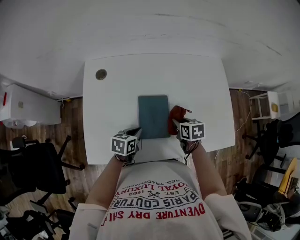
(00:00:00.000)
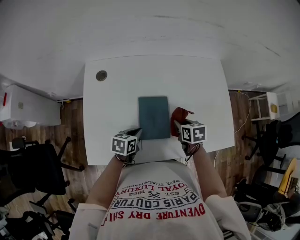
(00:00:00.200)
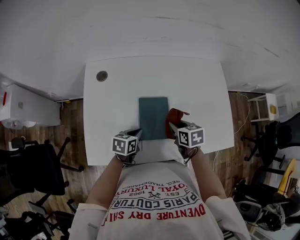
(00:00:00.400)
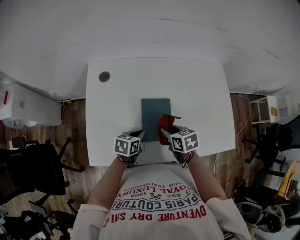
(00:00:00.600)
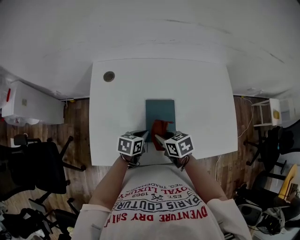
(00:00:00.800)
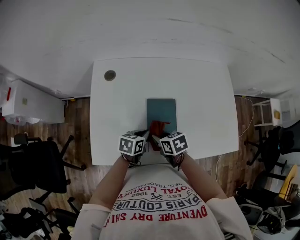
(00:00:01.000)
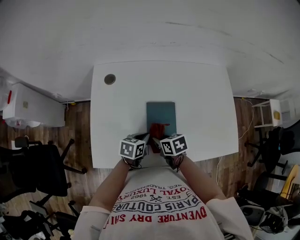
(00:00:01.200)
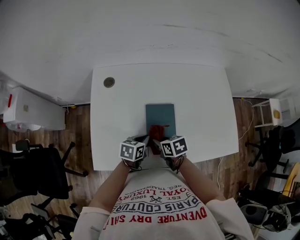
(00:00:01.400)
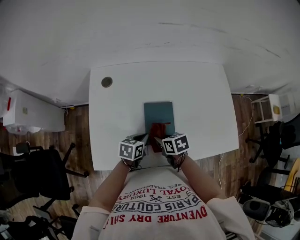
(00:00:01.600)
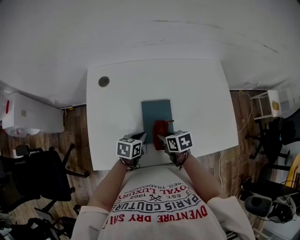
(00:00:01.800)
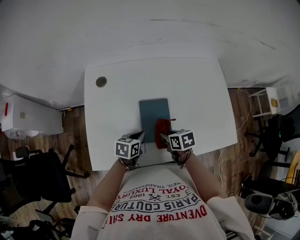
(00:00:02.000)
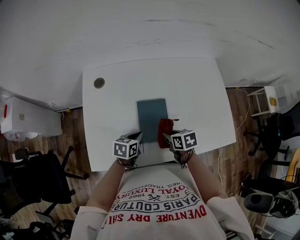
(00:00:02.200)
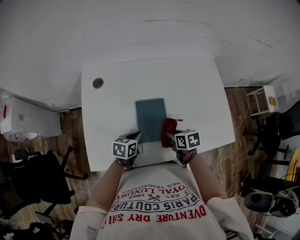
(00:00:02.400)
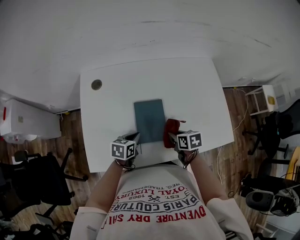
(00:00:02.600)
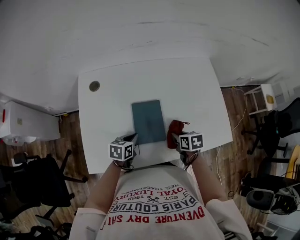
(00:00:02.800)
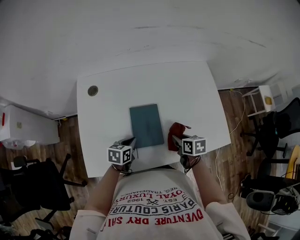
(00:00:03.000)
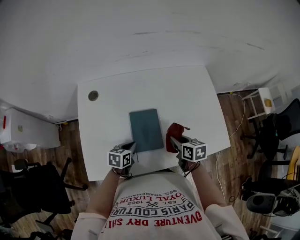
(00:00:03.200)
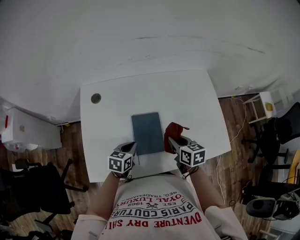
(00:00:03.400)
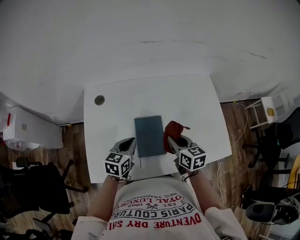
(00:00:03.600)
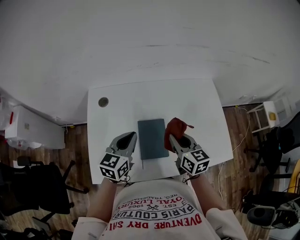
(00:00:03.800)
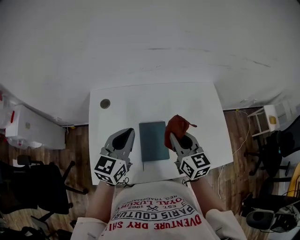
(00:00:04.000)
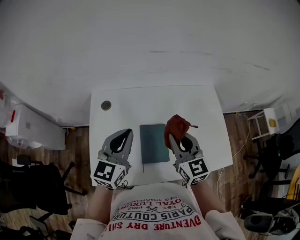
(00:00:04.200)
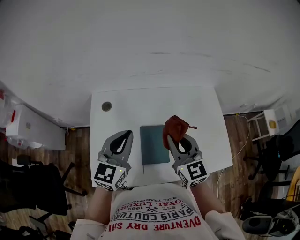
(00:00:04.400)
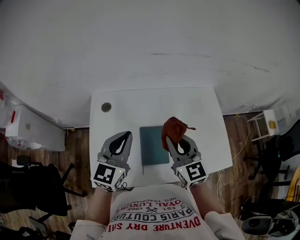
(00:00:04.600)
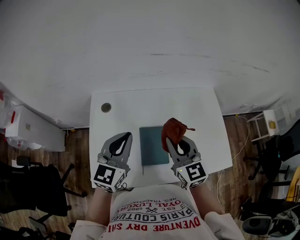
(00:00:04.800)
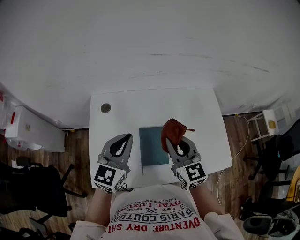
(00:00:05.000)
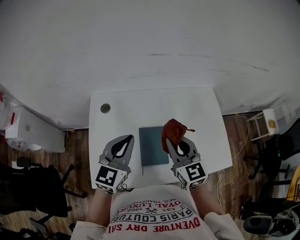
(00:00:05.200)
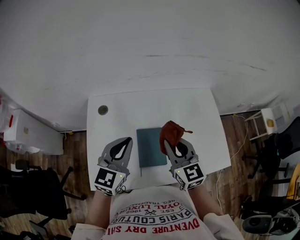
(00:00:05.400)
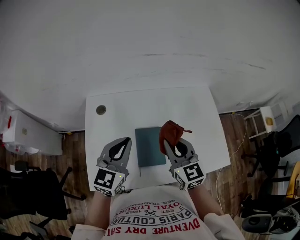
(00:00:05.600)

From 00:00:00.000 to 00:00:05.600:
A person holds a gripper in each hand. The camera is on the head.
From 00:00:00.000 to 00:00:01.400: The right gripper heads to the left and backward, covering roughly 15 cm.
From 00:00:01.400 to 00:00:02.800: The right gripper goes approximately 15 cm to the right.
From 00:00:02.800 to 00:00:04.200: Both grippers travel together upward, roughly 25 cm. The left gripper angles its fingers upward, by roughly 40 degrees, while the right gripper angles its fingers upward, by roughly 50 degrees.
From 00:00:04.200 to 00:00:05.600: There are only small adjustments of the grippers.

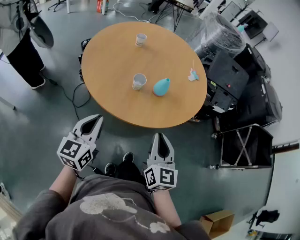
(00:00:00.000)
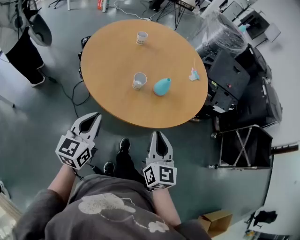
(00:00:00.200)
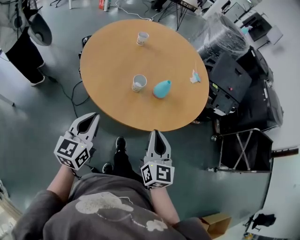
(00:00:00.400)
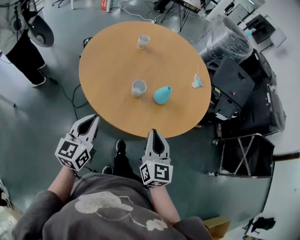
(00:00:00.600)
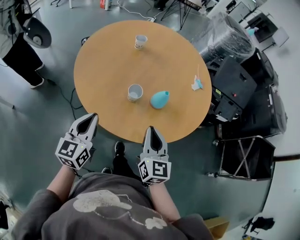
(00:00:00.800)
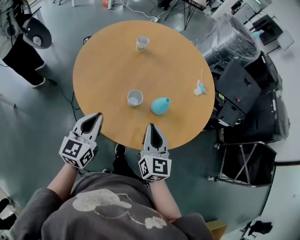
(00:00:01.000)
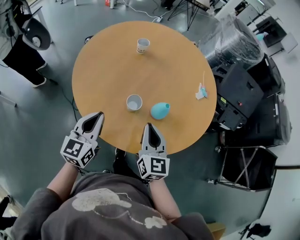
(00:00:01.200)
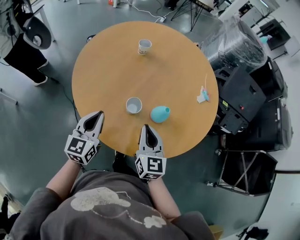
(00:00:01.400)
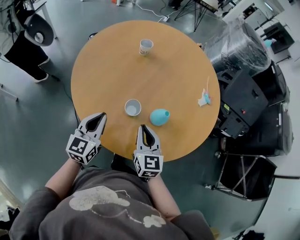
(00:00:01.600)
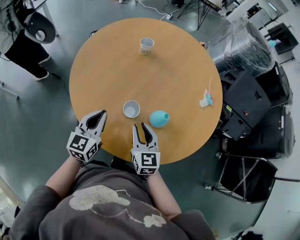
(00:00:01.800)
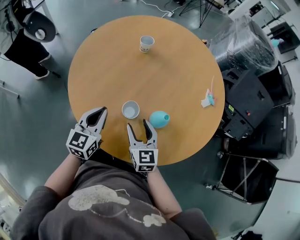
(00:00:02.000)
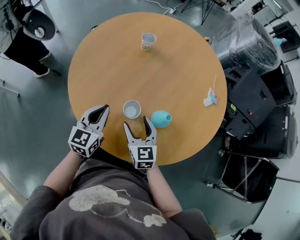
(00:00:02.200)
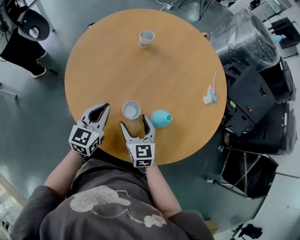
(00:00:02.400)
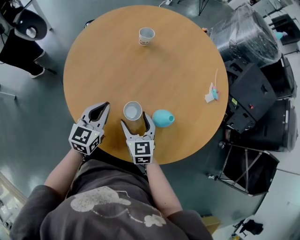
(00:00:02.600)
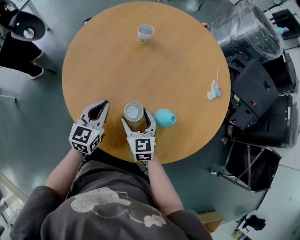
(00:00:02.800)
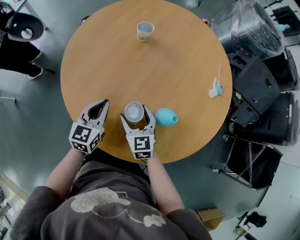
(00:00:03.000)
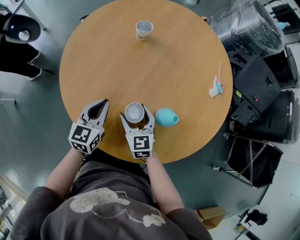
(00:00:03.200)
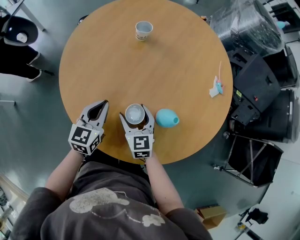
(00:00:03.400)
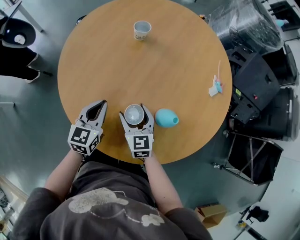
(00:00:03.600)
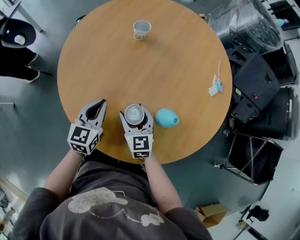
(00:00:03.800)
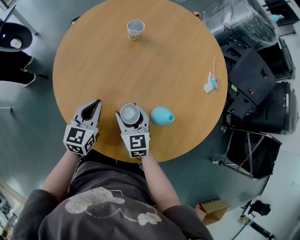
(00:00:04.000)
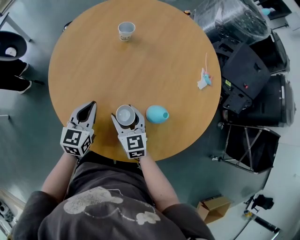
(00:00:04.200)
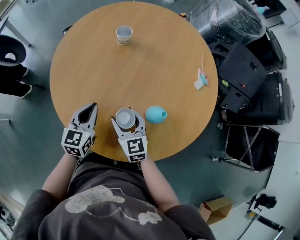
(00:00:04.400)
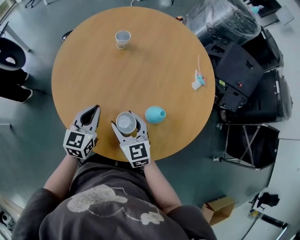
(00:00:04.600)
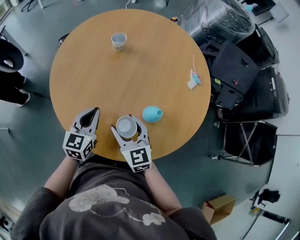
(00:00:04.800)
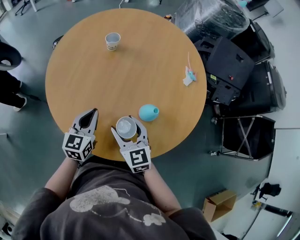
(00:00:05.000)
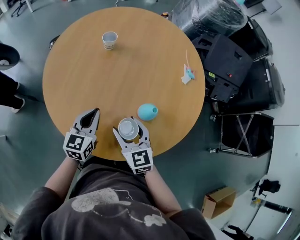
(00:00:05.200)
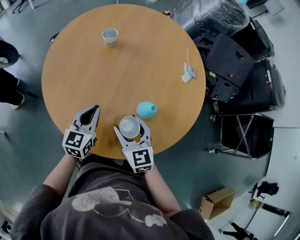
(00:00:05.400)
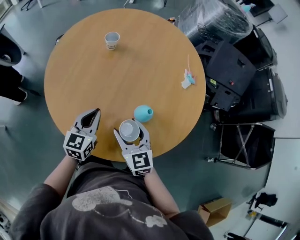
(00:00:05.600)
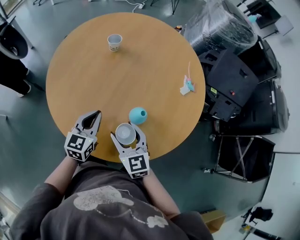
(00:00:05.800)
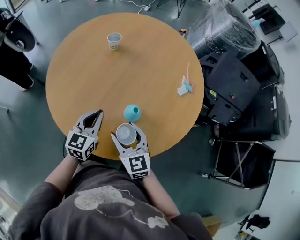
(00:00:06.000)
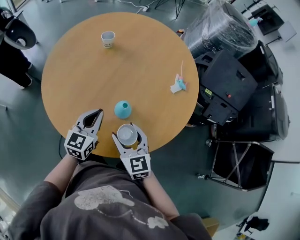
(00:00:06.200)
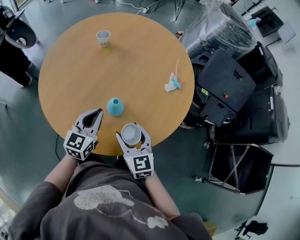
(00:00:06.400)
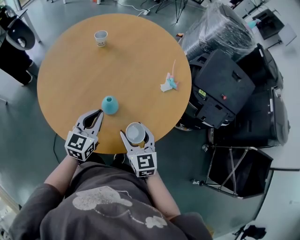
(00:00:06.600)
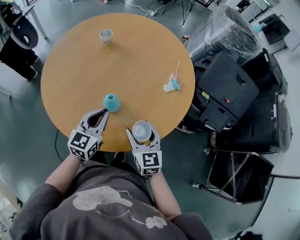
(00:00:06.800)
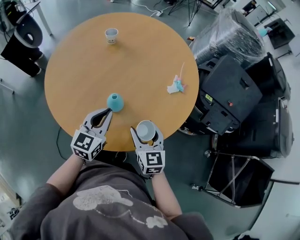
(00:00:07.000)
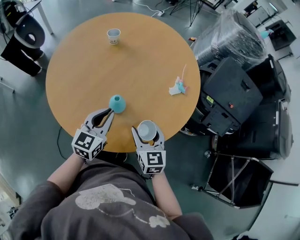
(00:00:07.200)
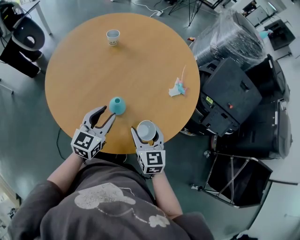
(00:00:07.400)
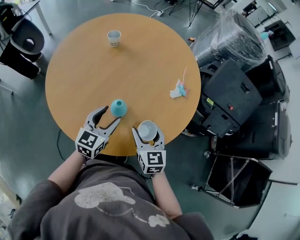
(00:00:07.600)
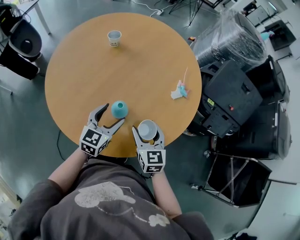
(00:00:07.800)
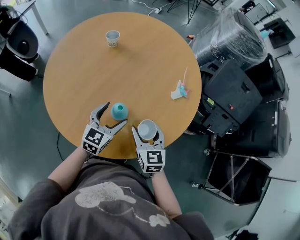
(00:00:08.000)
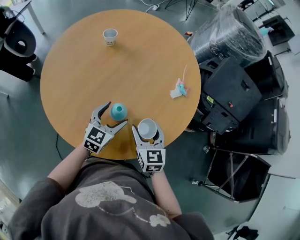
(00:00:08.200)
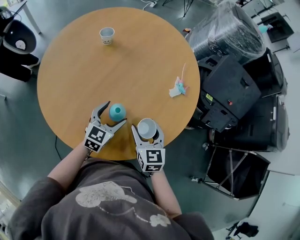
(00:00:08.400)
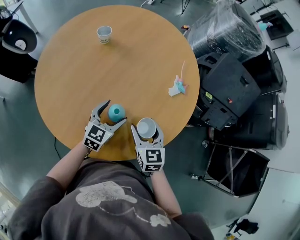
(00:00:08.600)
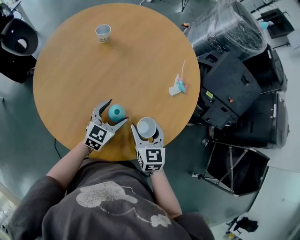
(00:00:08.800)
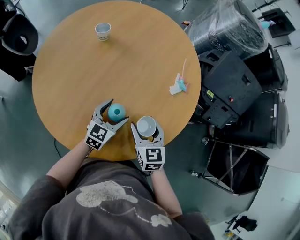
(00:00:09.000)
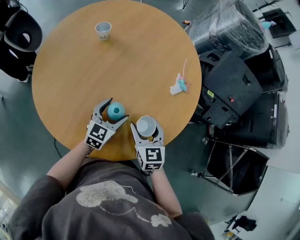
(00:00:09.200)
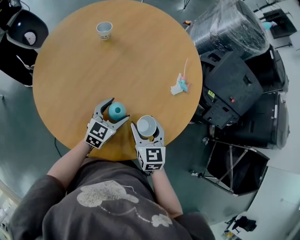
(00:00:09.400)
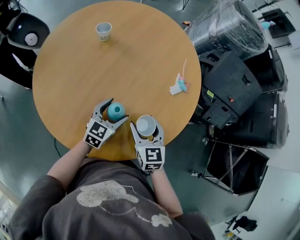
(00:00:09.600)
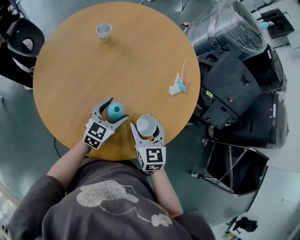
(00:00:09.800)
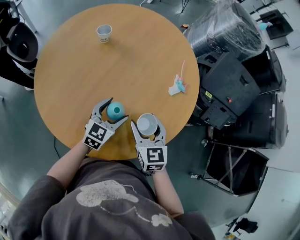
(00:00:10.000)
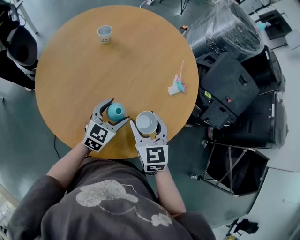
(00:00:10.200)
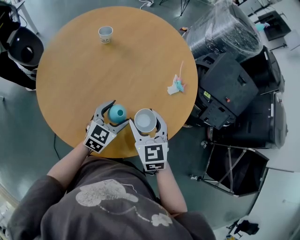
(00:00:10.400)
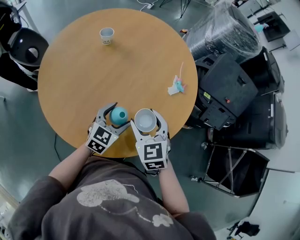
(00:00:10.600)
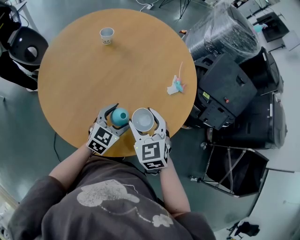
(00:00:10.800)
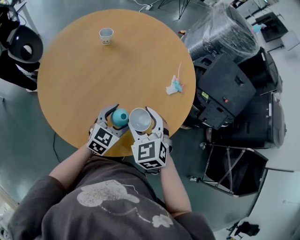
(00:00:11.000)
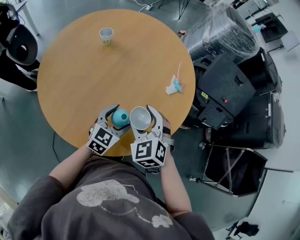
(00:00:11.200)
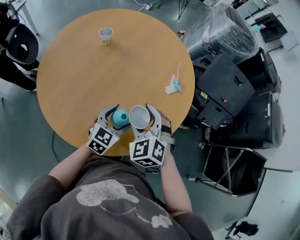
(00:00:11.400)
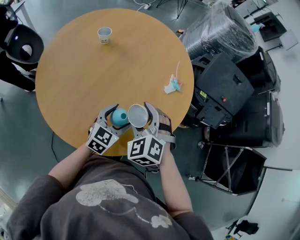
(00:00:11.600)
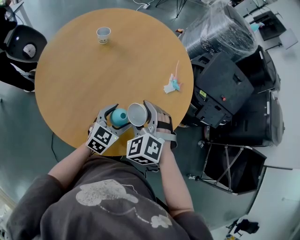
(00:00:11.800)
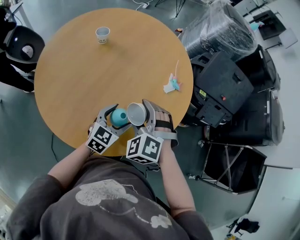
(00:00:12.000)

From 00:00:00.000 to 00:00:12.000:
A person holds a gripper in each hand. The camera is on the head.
From 00:00:00.000 to 00:00:01.600: The left gripper heads forward, covering some 20 cm. The right gripper shifts about 25 cm forward and downward, and changes its angle by roughly 20 degrees.
From 00:00:01.600 to 00:00:03.000: The left gripper is displaced forward and downward by about 10 cm. The right gripper heads forward, downward and to the left, covering roughly 15 cm, and opens.
From 00:00:03.000 to 00:00:04.400: There are only small adjustments of the grippers.
From 00:00:04.400 to 00:00:06.000: The right gripper travels to the right, backward and upward by about 15 cm; the left gripper travels to the right and backward by some 15 cm.
From 00:00:06.000 to 00:00:07.600: The two grippers go roughly 15 cm to the right. The left gripper opens its fingers.
From 00:00:07.600 to 00:00:09.000: The left gripper heads downward and forward, covering roughly 10 cm. Meanwhile the right gripper changes place by roughly 5 cm.
From 00:00:09.000 to 00:00:10.400: The left gripper ends up roughly 5 cm from where it was; the right gripper is displaced upward by roughly 10 cm.
From 00:00:10.400 to 00:00:12.000: The right gripper twists some 50 degrees counterclockwise, seen from behind.

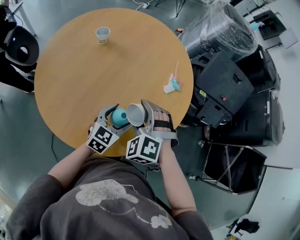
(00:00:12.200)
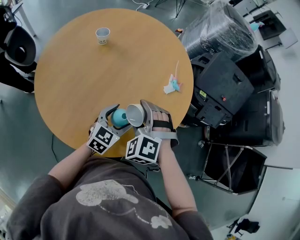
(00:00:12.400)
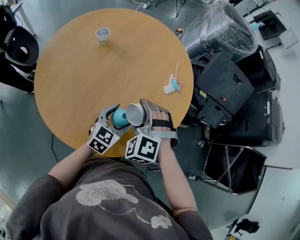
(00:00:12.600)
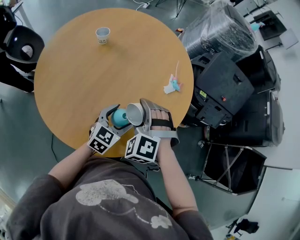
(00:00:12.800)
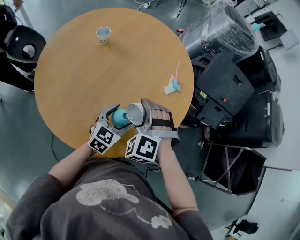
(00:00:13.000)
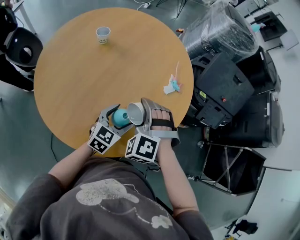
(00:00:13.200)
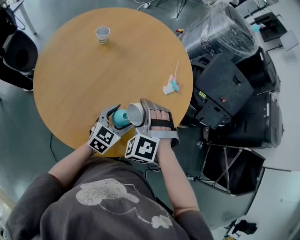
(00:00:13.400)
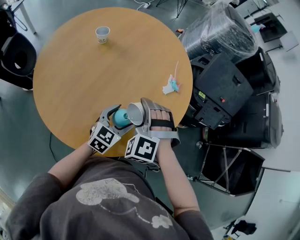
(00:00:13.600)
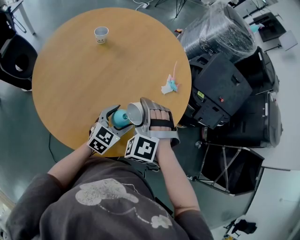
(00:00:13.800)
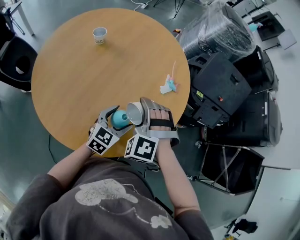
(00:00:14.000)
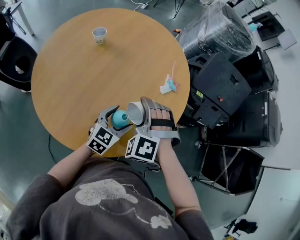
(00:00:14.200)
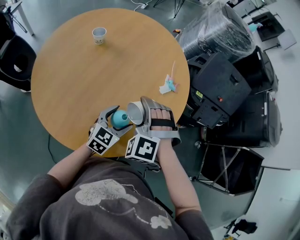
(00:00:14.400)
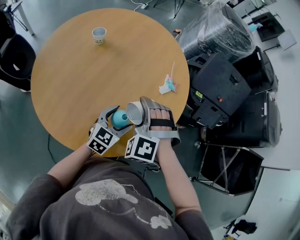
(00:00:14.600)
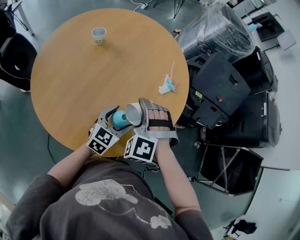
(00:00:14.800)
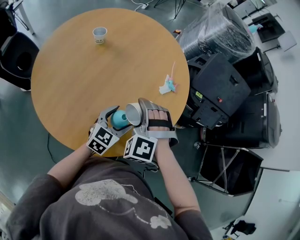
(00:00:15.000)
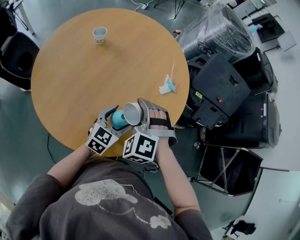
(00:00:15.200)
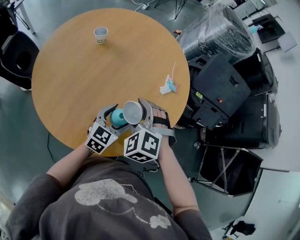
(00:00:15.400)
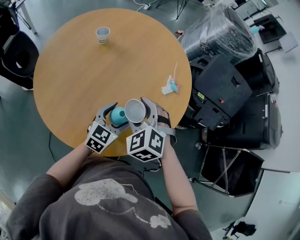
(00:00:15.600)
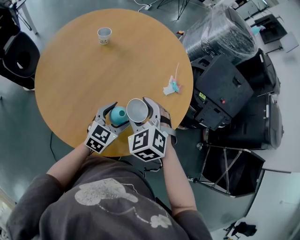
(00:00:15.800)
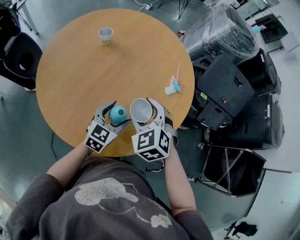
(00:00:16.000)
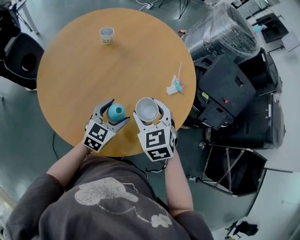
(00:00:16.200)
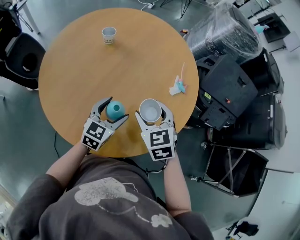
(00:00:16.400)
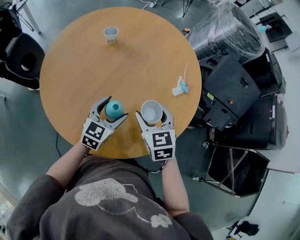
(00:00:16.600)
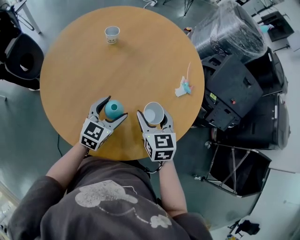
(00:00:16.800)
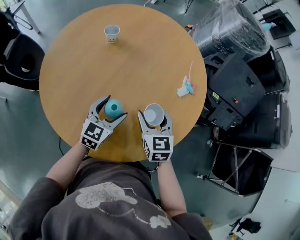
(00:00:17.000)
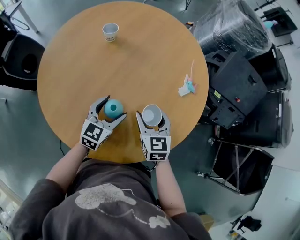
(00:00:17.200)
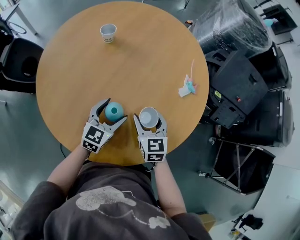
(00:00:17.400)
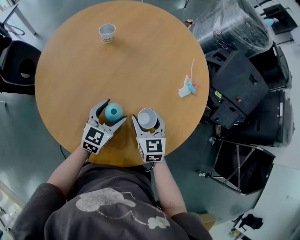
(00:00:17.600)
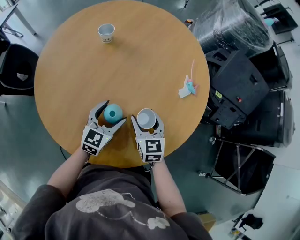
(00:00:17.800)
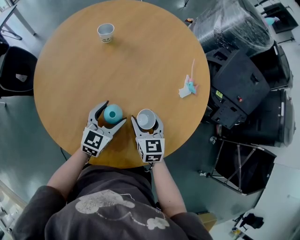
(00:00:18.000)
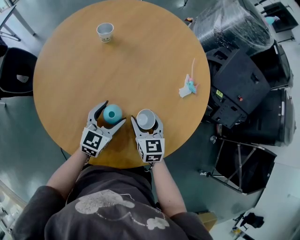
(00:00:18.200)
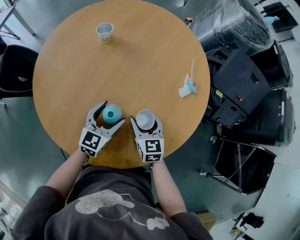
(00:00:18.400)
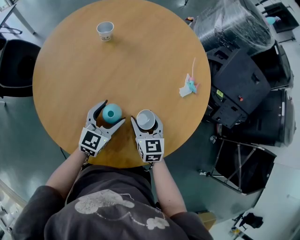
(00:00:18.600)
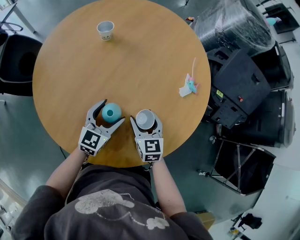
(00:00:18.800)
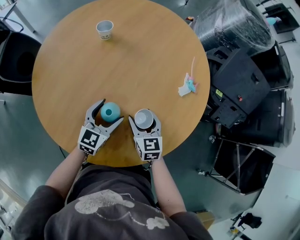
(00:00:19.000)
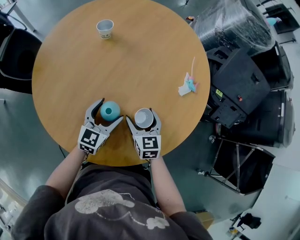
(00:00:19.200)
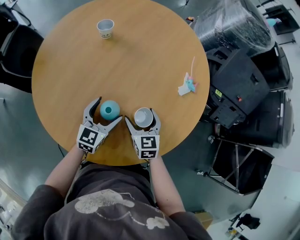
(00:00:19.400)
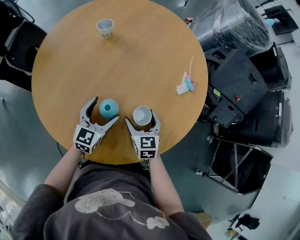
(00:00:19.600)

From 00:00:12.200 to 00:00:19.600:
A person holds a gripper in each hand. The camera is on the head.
From 00:00:12.200 to 00:00:15.200: The grippers move only a little.
From 00:00:15.200 to 00:00:16.600: The left gripper travels to the left by about 10 cm; the right gripper rotates around the line of its fingers by about 60 degrees, clockwise from behind.
From 00:00:16.600 to 00:00:18.200: The right gripper moves downward, approximately 10 cm; the left gripper shifts roughly 5 cm downward.
From 00:00:18.200 to 00:00:19.600: The grippers make only small movements.
